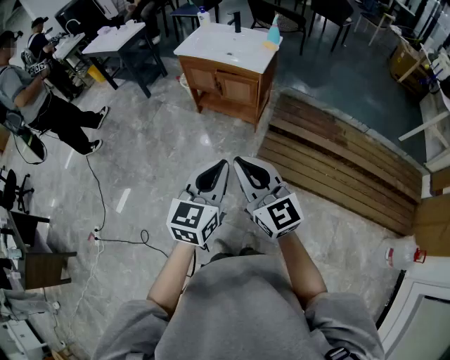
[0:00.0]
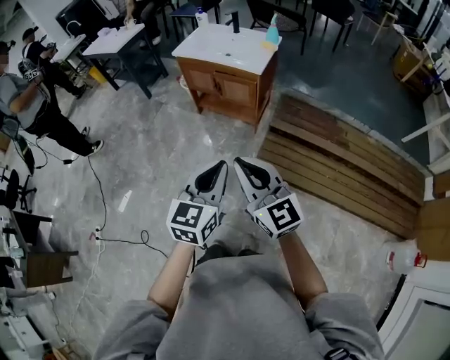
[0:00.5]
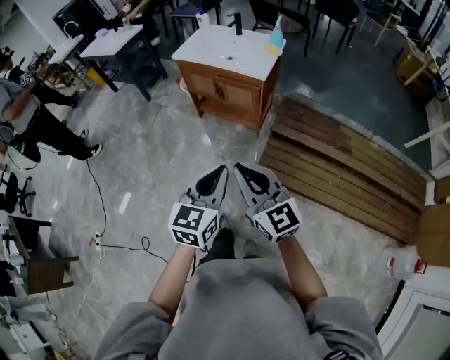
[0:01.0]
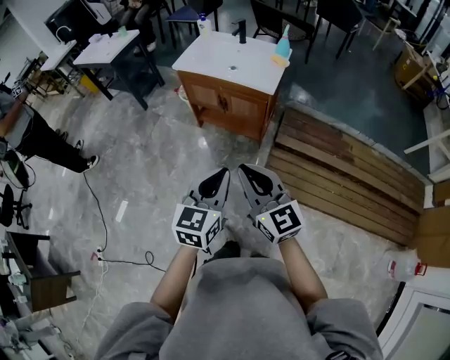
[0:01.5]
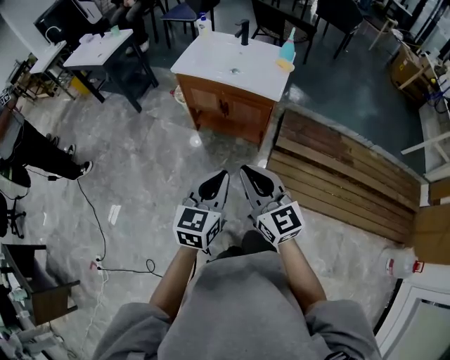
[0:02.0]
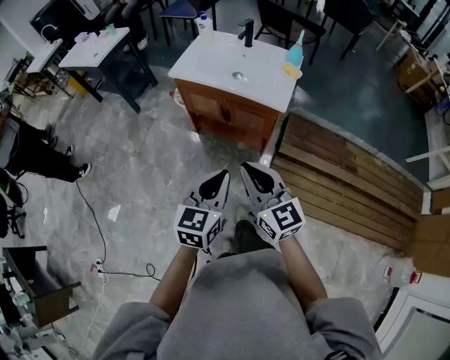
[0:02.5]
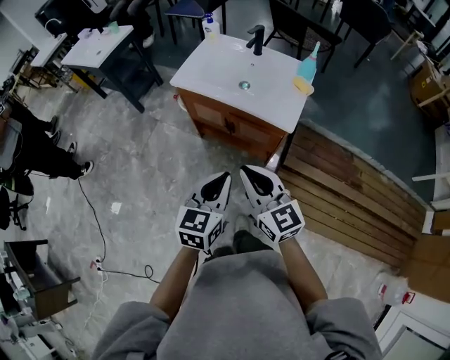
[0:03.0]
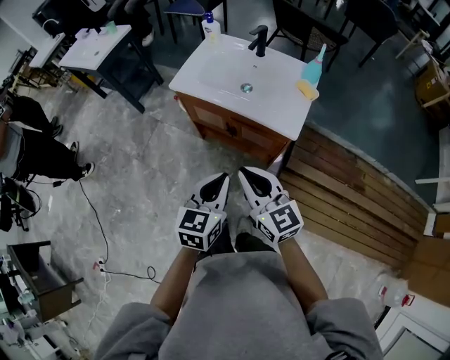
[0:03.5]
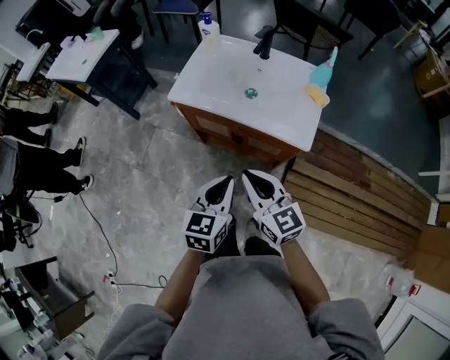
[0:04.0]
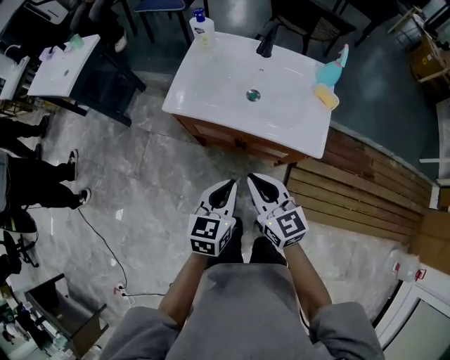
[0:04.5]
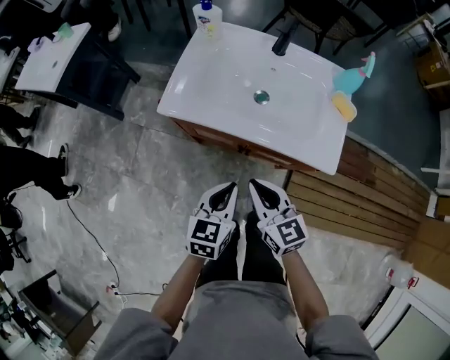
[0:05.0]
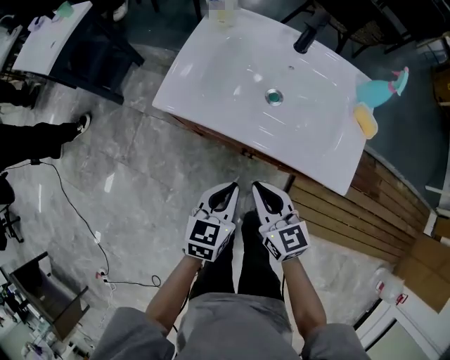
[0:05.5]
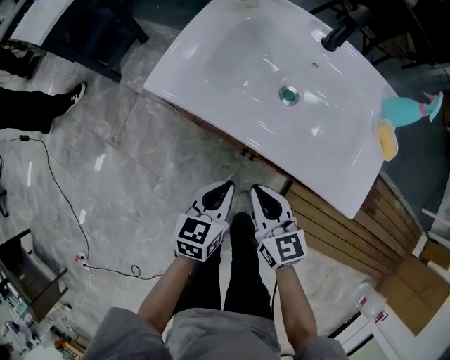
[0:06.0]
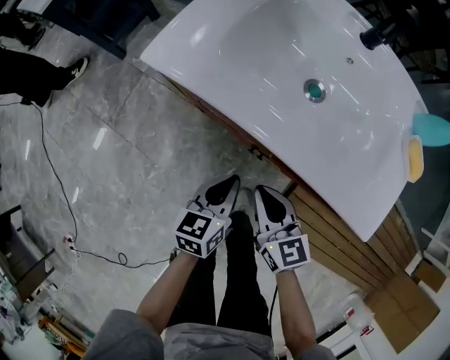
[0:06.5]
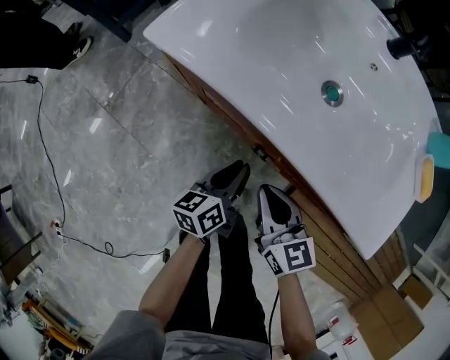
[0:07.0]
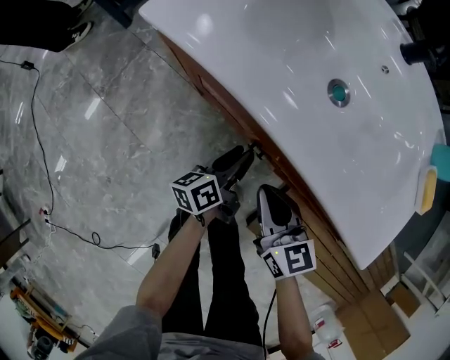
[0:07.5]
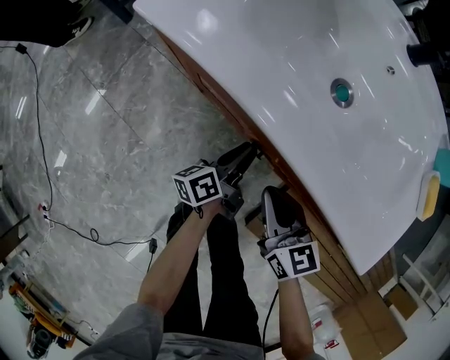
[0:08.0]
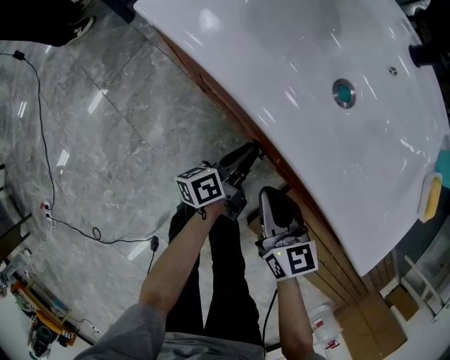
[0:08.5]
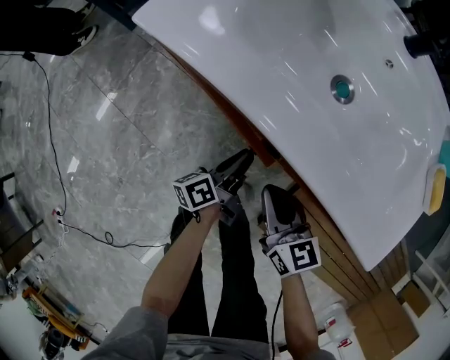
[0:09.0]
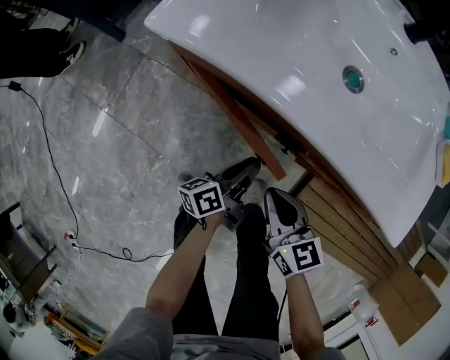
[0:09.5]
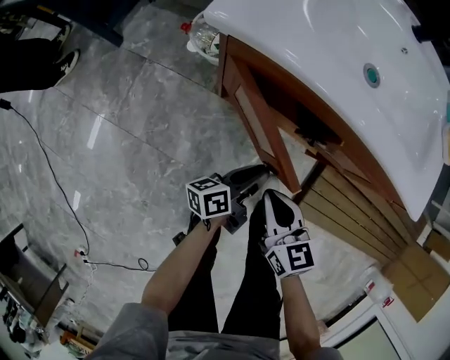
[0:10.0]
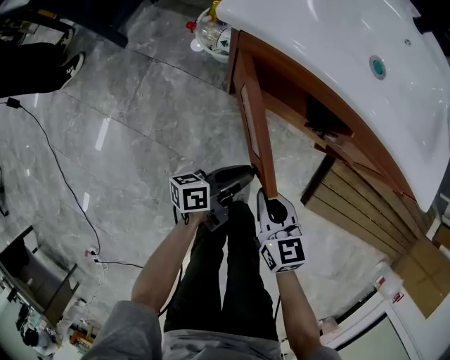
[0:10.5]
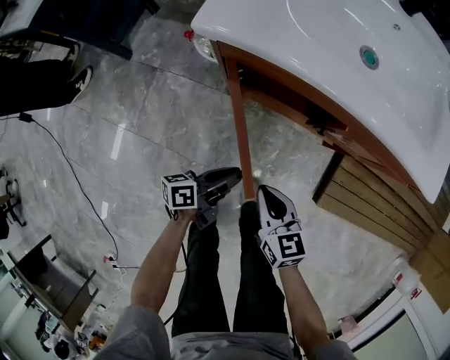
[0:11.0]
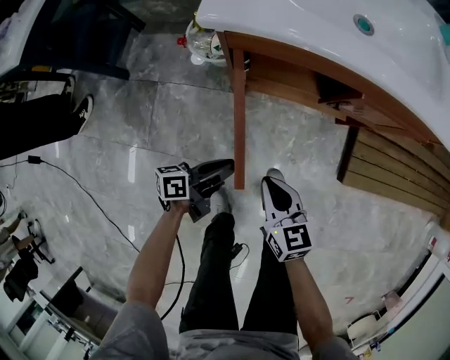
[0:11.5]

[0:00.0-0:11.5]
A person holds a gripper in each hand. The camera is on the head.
0:00.0 to 0:02.0: Both grippers move forward, roughly 25 cm.
0:02.0 to 0:04.0: Both grippers move forward, about 30 cm.
0:04.0 to 0:06.0: The grippers both shift downward and forward by some 30 cm.
0:06.0 to 0:07.5: The right gripper is displaced downward by approximately 10 cm; the left gripper heads downward, covering some 15 cm, rotates around the line of its fingers by approximately 40 degrees, counterclockwise from behind, and opens its fingers.
0:07.5 to 0:09.5: The right gripper goes approximately 5 cm to the left. Meanwhile the left gripper changes place by about 5 cm.
0:09.5 to 0:11.5: The right gripper shifts by some 20 cm, and turns by about 20 degrees. The left gripper moves approximately 25 cm, and changes its angle by approximately 40 degrees.

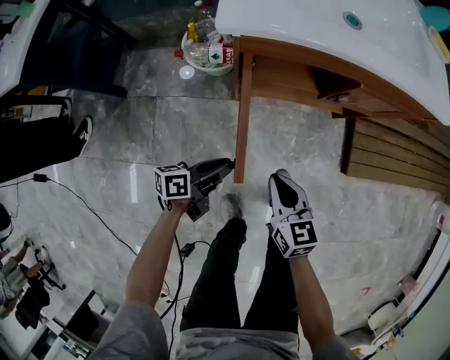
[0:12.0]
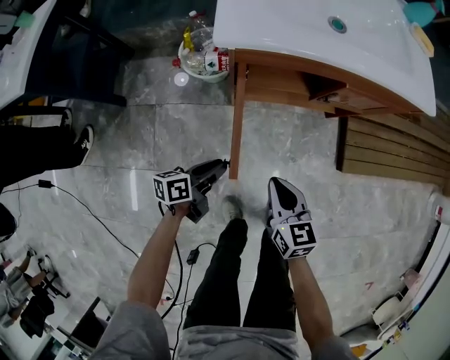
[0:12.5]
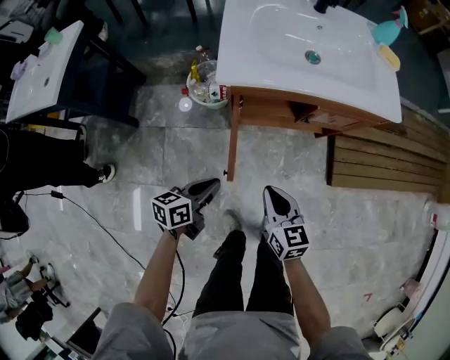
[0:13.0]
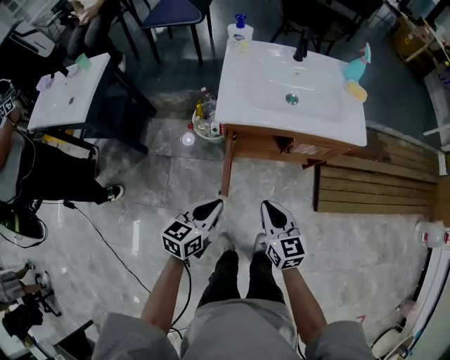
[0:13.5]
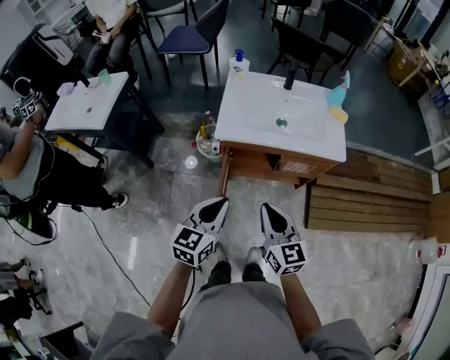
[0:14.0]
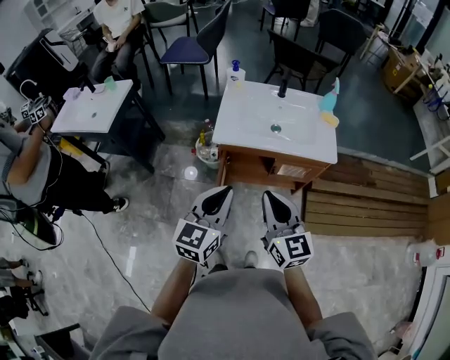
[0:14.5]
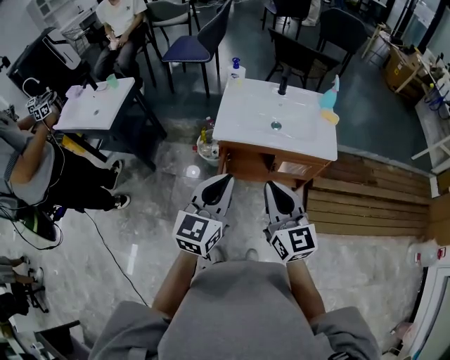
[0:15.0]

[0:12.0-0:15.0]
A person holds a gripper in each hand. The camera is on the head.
0:12.0 to 0:13.5: The grippers both shift upward by some 25 cm. The left gripper turns by about 40 degrees.
0:13.5 to 0:15.0: Both grippers travel together upward, roughly 25 cm. The left gripper swivels about 30 degrees; the right gripper rotates approximately 20 degrees.

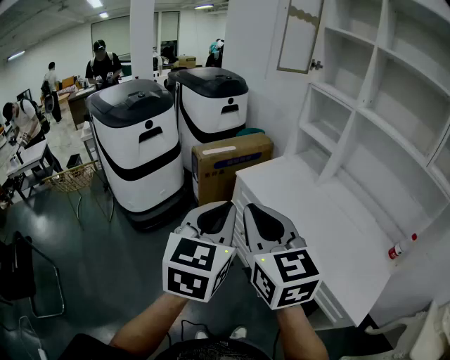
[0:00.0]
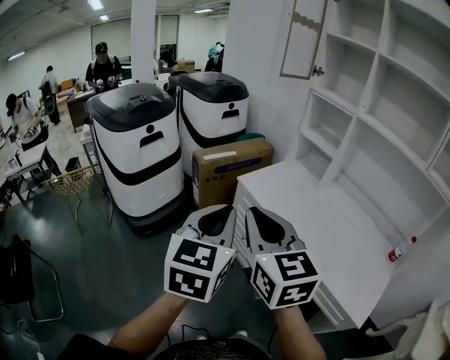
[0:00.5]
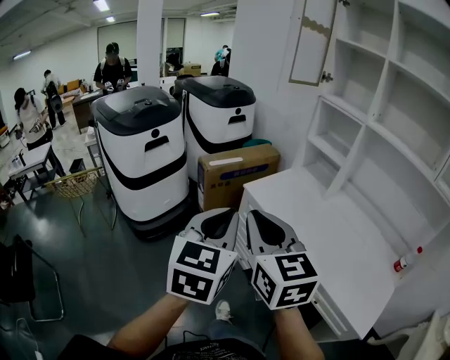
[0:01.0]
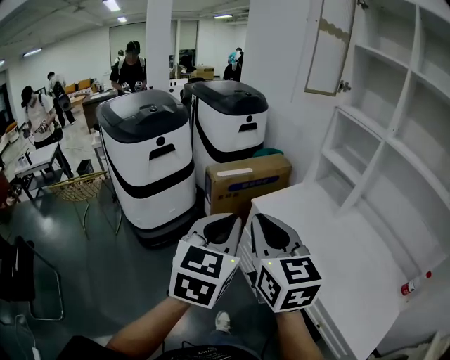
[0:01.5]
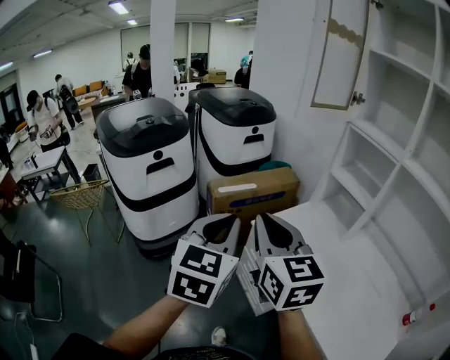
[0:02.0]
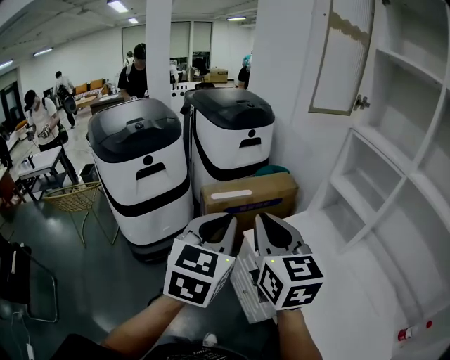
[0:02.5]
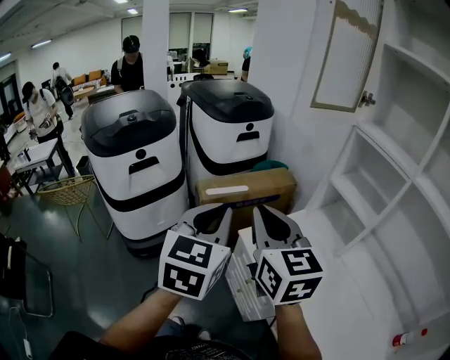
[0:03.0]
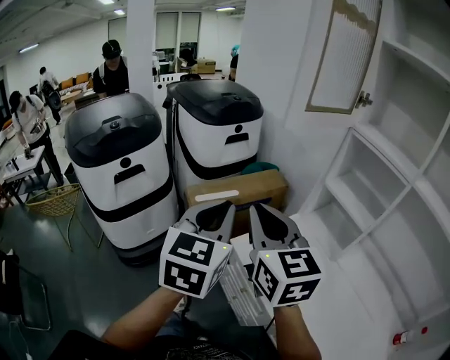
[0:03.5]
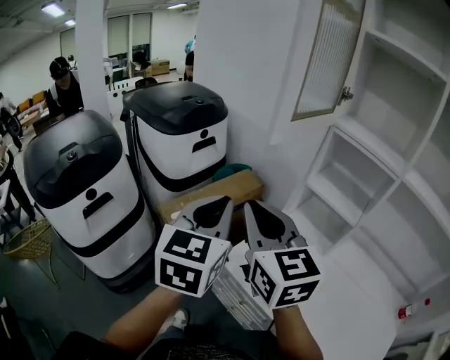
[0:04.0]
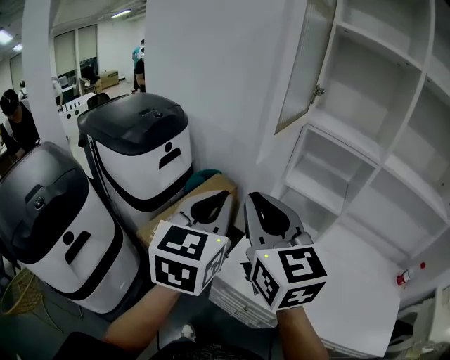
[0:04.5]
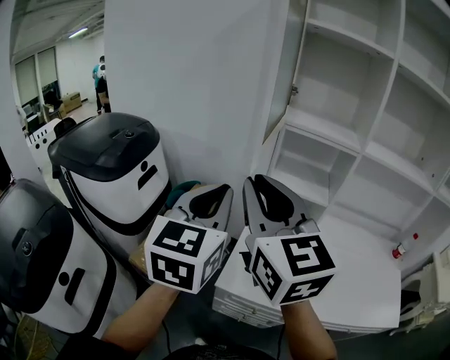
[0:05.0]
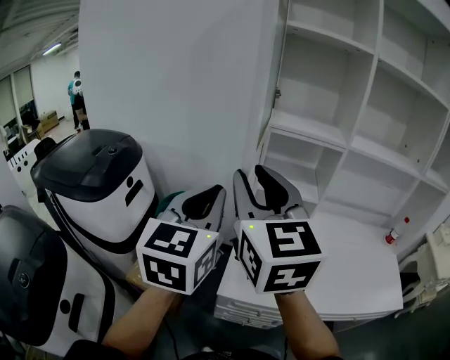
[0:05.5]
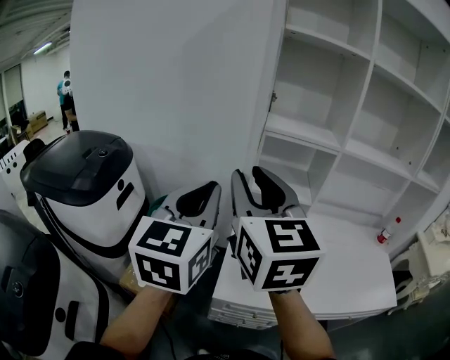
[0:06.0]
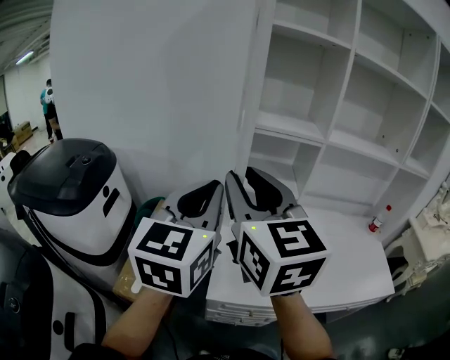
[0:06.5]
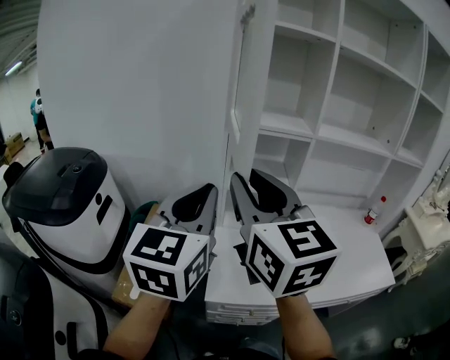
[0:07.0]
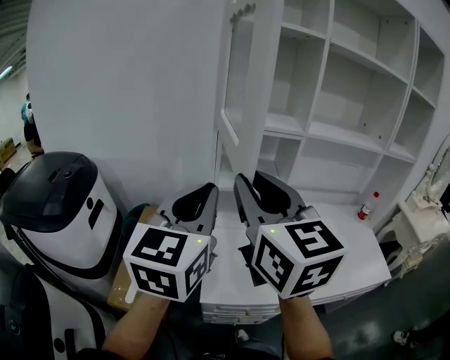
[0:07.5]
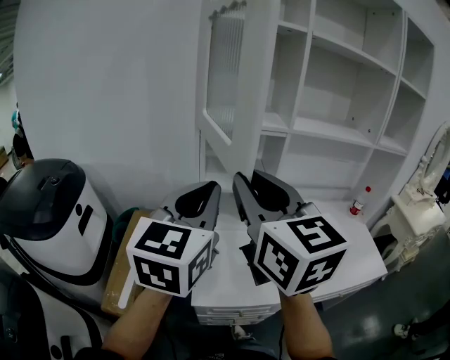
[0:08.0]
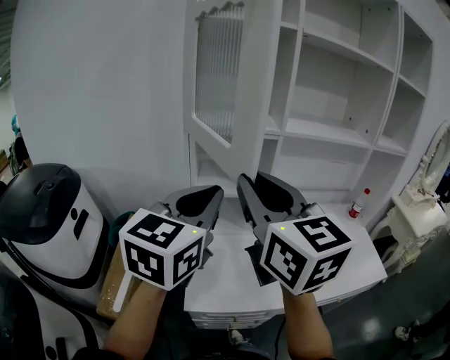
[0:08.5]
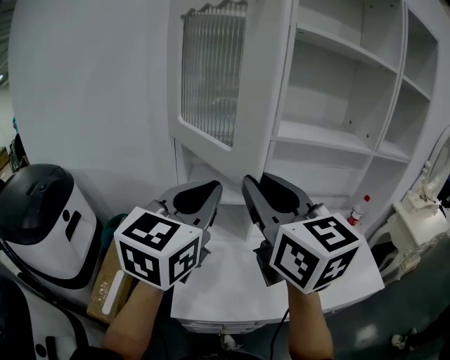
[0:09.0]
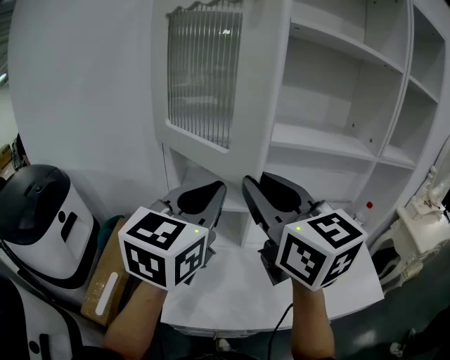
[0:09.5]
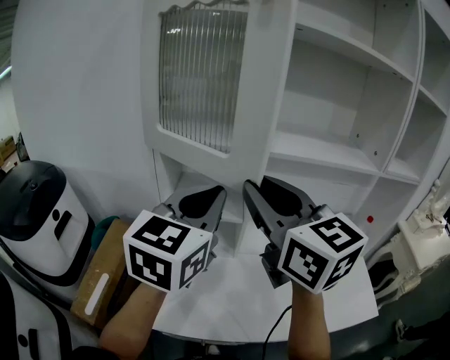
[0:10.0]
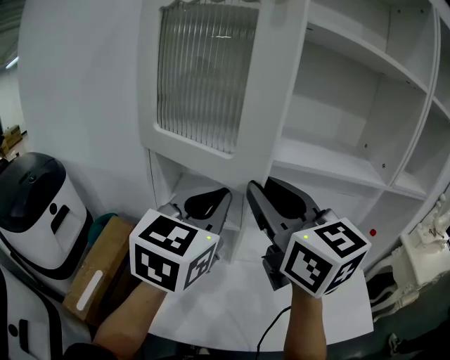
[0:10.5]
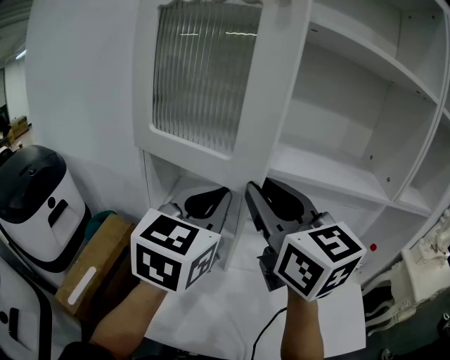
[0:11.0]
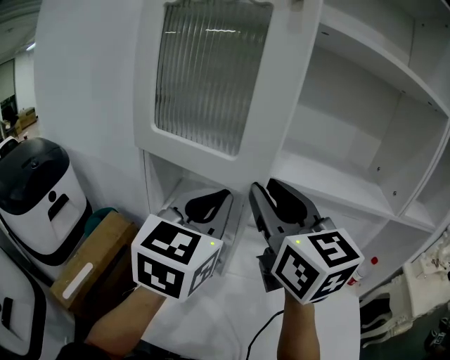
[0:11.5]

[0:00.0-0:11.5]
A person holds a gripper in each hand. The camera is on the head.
0:00.0 to 0:02.0: Both grippers move forward, approximately 25 cm.
0:02.0 to 0:04.0: Both grippers move forward, some 25 cm.
0:04.0 to 0:06.0: The right gripper goes approximately 10 cm upward, turns by about 40 degrees, and opens its fingers. The left gripper moves roughly 15 cm, and changes its angle by approximately 40 degrees.
0:06.0 to 0:07.5: Both grippers move to the right, roughly 5 cm.
0:07.5 to 0:09.5: Both grippers travel together to the right and forward, some 20 cm.
0:09.5 to 0:11.5: The two grippers go roughly 10 cm forward and to the right.

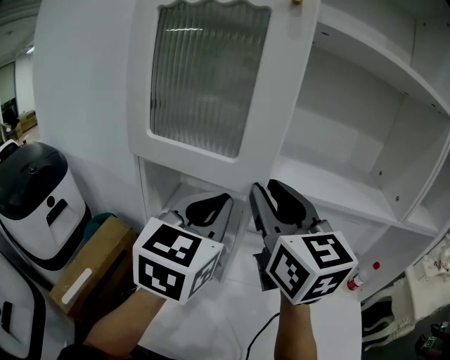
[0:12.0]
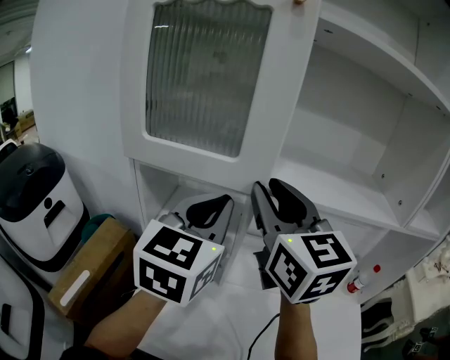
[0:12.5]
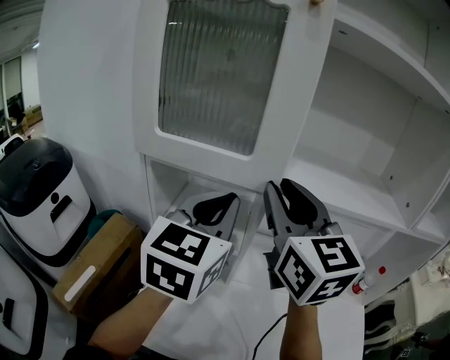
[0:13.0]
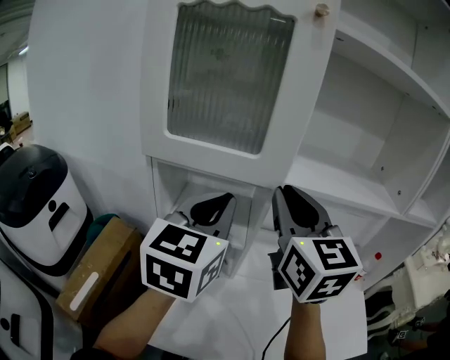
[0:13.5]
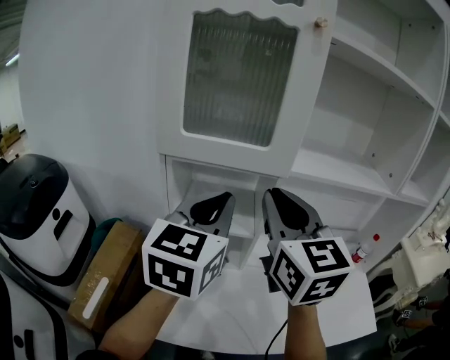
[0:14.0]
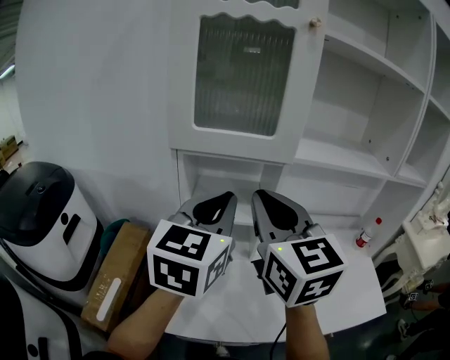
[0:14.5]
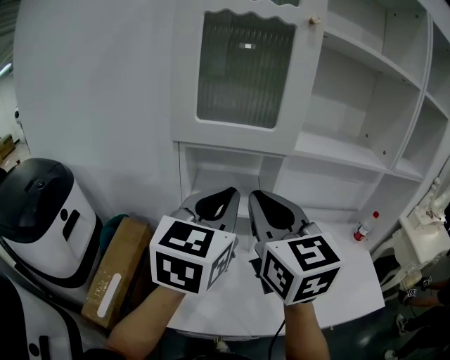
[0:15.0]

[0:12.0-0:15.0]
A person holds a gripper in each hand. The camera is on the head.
0:12.0 to 0:13.5: The grippers make only small movements.
0:13.5 to 0:15.0: The left gripper travels backward by approximately 10 cm. The right gripper is displaced backward and to the left by roughly 15 cm.
